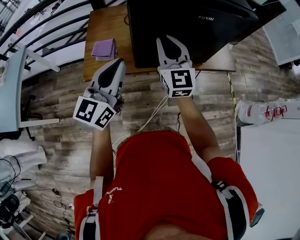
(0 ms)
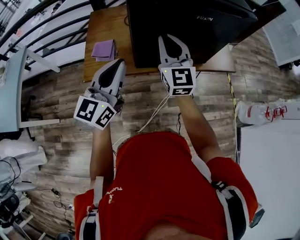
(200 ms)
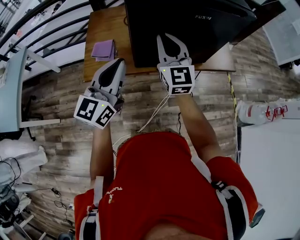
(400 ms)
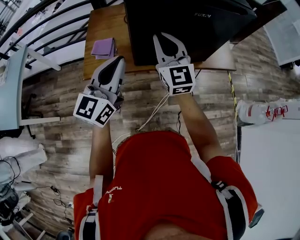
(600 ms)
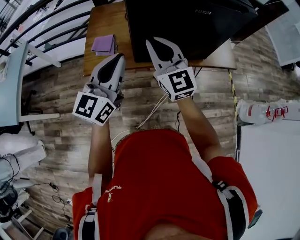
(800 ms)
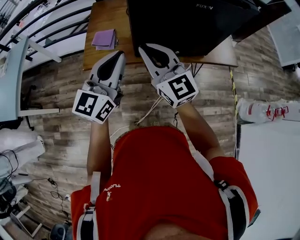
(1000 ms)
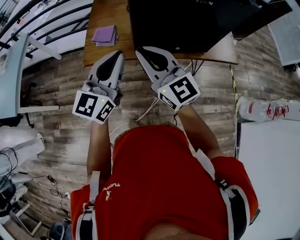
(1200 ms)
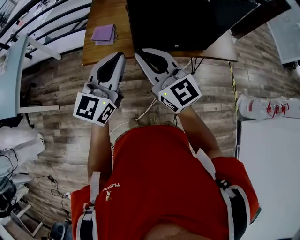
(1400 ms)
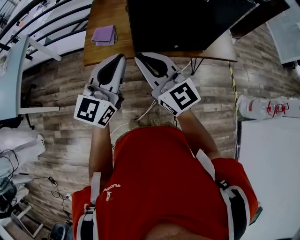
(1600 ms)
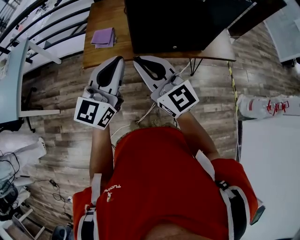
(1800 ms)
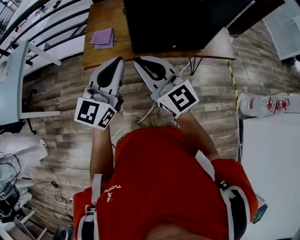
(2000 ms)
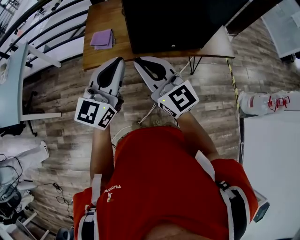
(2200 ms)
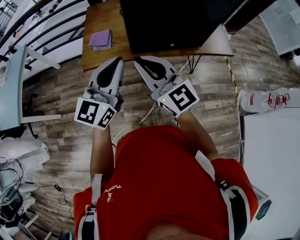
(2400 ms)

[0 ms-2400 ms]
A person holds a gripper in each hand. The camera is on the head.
0 ms to 1200 ms: The right gripper goes some 15 cm backward and to the left, and rotates roughly 30 degrees.
1200 ms to 2400 ms: The grippers make only small movements.

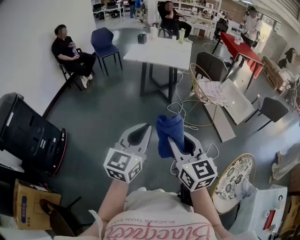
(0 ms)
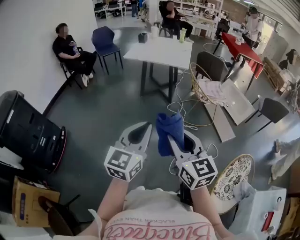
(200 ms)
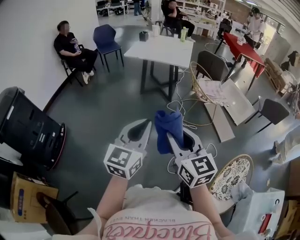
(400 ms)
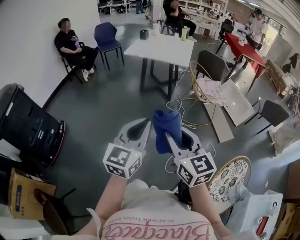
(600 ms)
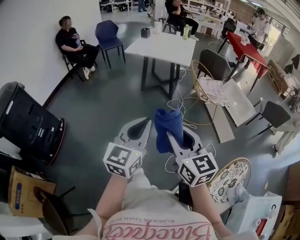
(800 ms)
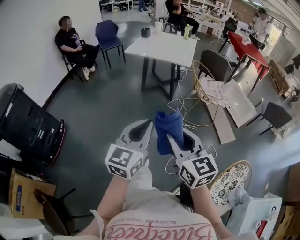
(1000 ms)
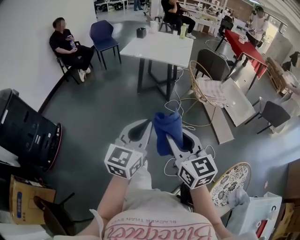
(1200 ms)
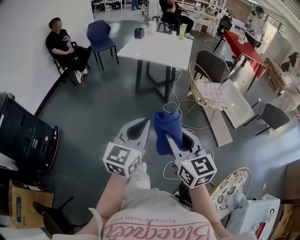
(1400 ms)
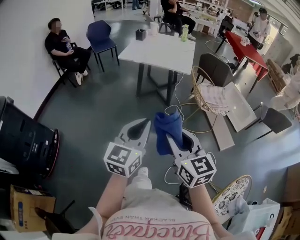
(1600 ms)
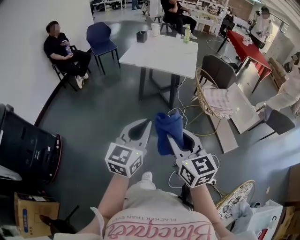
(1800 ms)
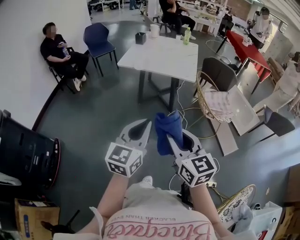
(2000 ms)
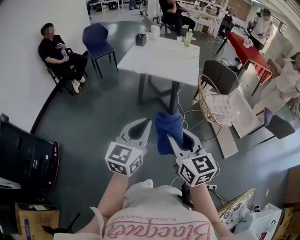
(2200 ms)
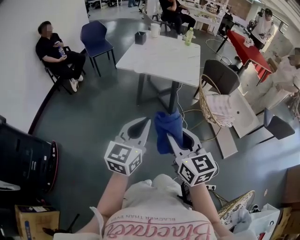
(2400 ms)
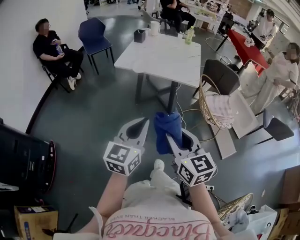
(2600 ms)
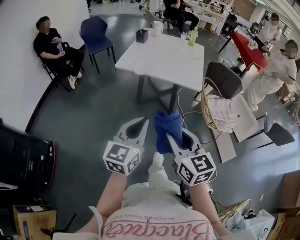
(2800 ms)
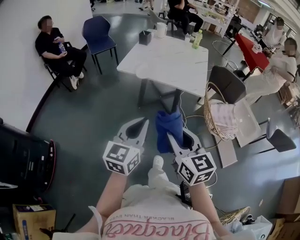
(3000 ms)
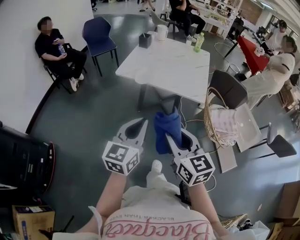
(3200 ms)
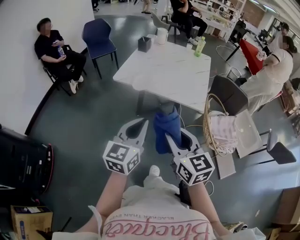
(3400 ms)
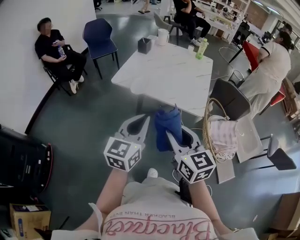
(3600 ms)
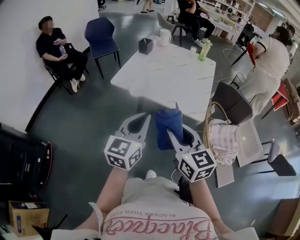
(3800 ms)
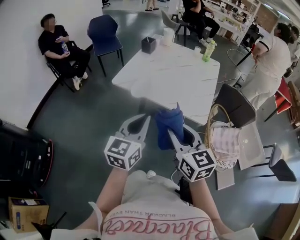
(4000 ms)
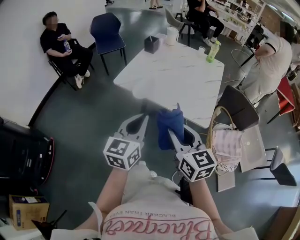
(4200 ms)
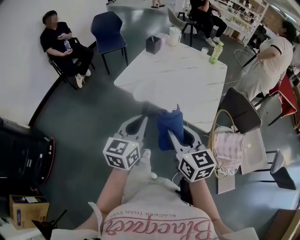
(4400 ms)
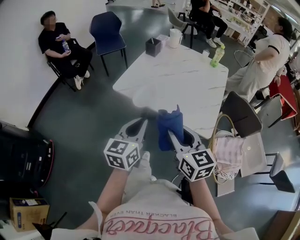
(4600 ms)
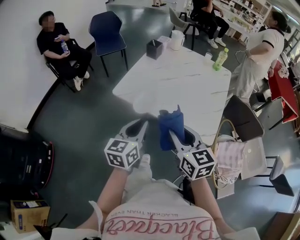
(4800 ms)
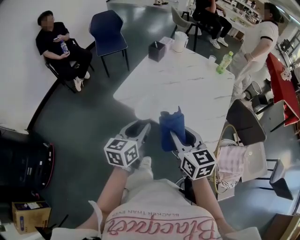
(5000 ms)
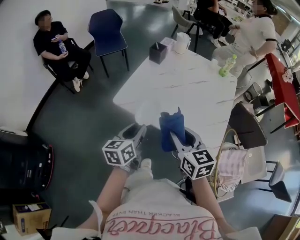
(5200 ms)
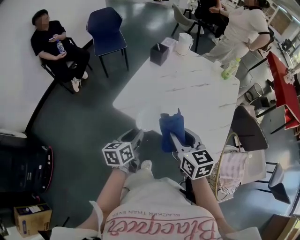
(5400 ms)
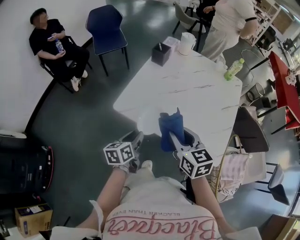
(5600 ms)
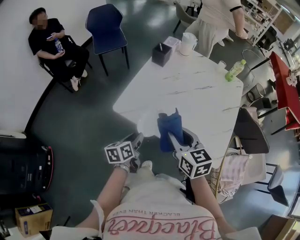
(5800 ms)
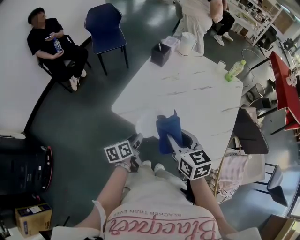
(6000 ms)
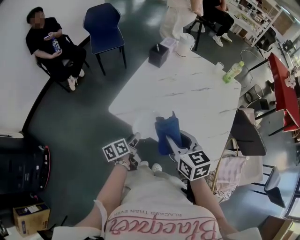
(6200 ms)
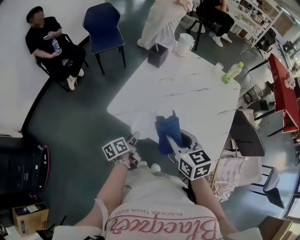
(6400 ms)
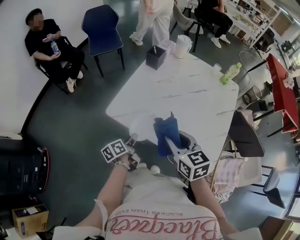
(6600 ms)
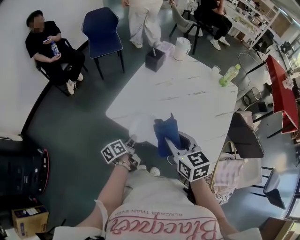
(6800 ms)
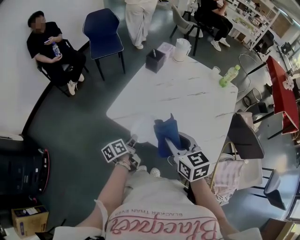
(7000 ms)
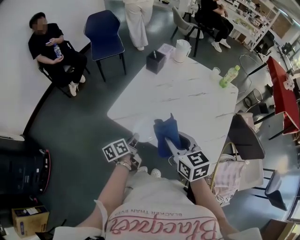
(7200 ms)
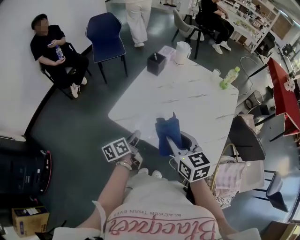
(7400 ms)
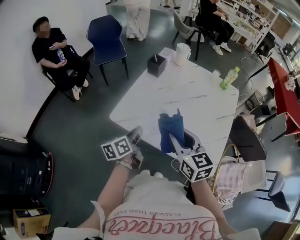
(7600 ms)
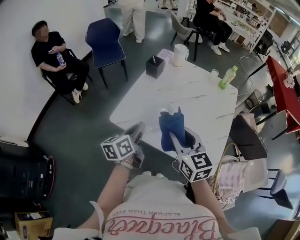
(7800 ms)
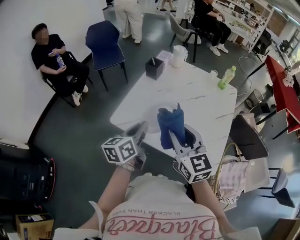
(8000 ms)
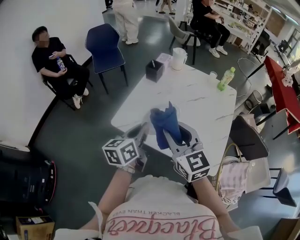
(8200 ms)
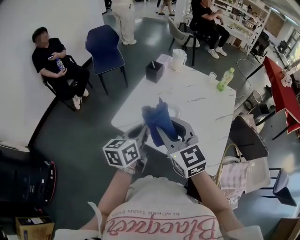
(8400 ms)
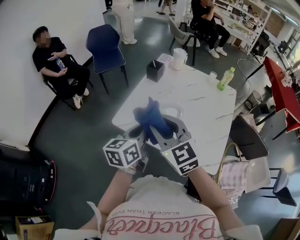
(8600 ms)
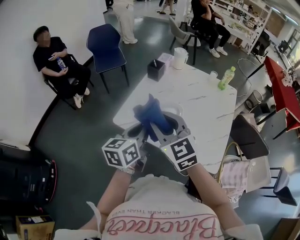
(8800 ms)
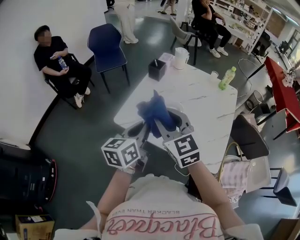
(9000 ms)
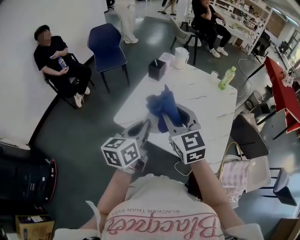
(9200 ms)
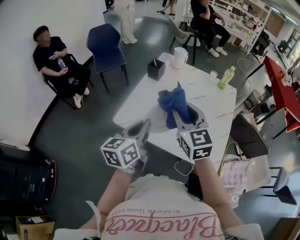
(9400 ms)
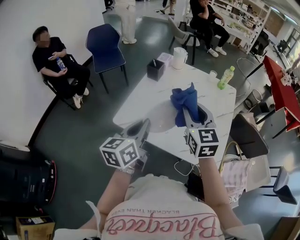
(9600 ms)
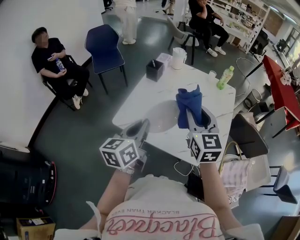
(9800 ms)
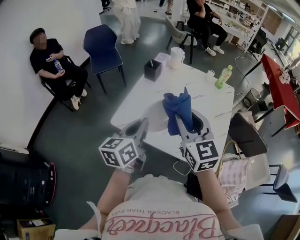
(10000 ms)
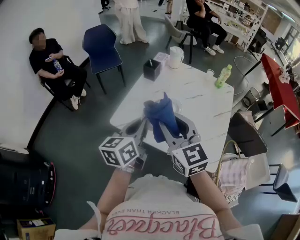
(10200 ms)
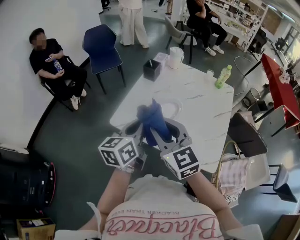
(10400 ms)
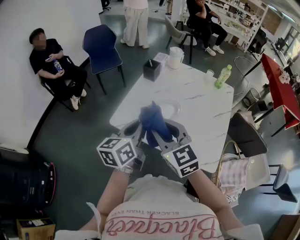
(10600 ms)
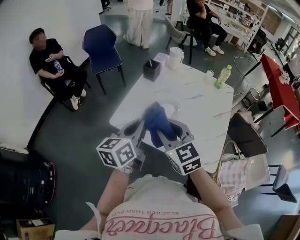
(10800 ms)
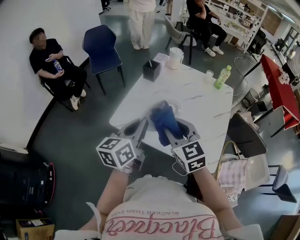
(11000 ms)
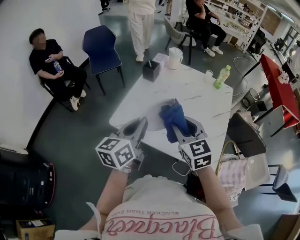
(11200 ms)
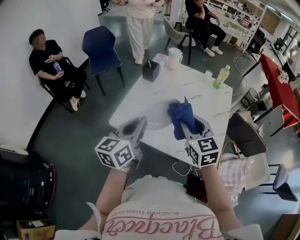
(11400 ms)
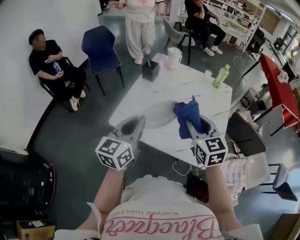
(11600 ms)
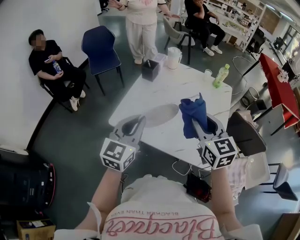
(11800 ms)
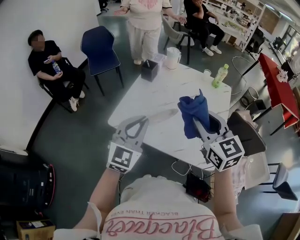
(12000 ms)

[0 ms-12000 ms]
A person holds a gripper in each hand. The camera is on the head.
0 ms to 1600 ms: Both grippers move forward, approximately 20 cm.
1600 ms to 3000 ms: Both grippers move forward, about 30 cm.
3000 ms to 4400 ms: The grippers both shift forward by roughly 25 cm.
4400 ms to 6000 ms: The left gripper goes roughly 35 cm downward and forward, rotates around the line of its fingers by roughly 40 degrees, counterclockwise from behind, and opens up. Meanwhile the right gripper shifts some 25 cm forward.
6000 ms to 7600 ms: The right gripper changes place by some 5 cm; the left gripper is displaced upward by about 10 cm, and closes up.
7600 ms to 9000 ms: The right gripper goes approximately 10 cm to the left and upward, and rotates some 20 degrees. The left gripper goes some 15 cm upward, and rotates some 20 degrees.
9000 ms to 10400 ms: The right gripper moves roughly 15 cm to the right and comes back.
10400 ms to 12000 ms: The left gripper rotates around the line of its fingers by about 50 degrees, clockwise from behind. Meanwhile the right gripper goes roughly 15 cm to the right.

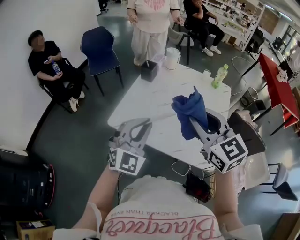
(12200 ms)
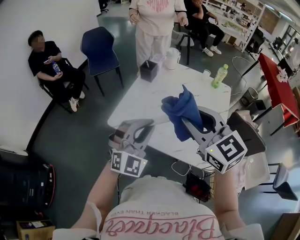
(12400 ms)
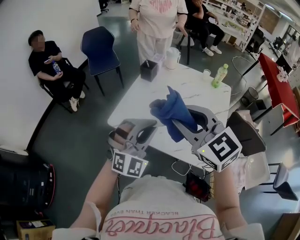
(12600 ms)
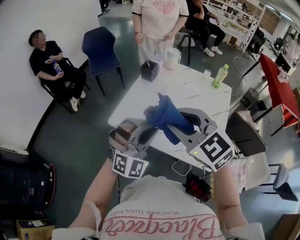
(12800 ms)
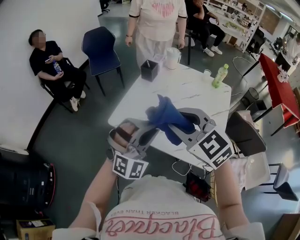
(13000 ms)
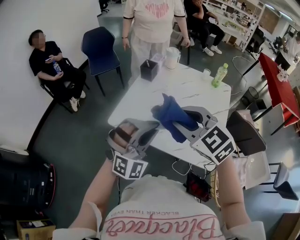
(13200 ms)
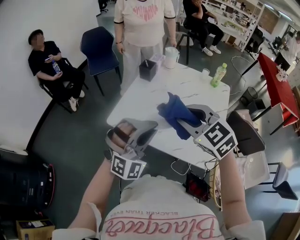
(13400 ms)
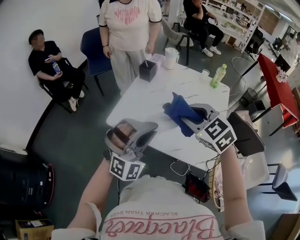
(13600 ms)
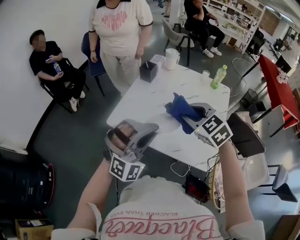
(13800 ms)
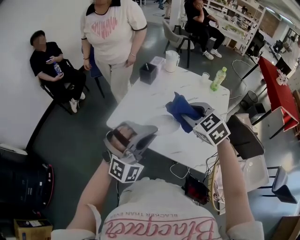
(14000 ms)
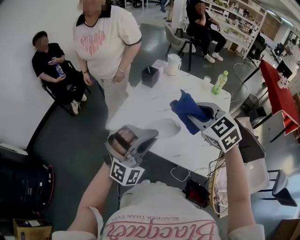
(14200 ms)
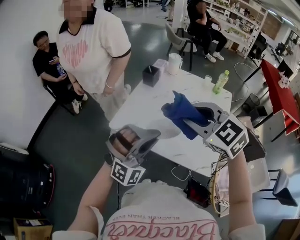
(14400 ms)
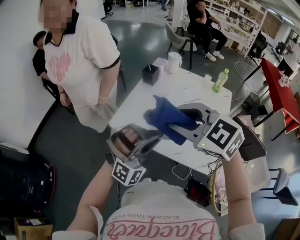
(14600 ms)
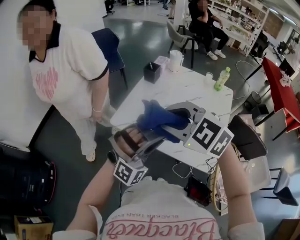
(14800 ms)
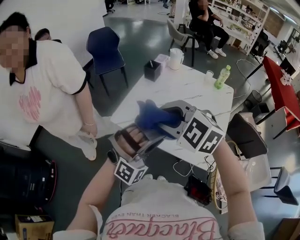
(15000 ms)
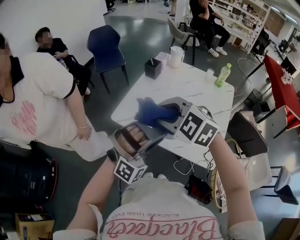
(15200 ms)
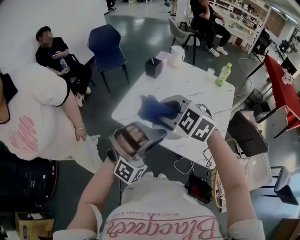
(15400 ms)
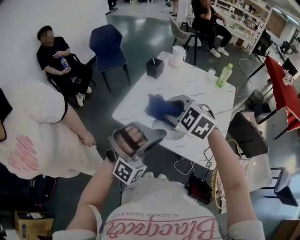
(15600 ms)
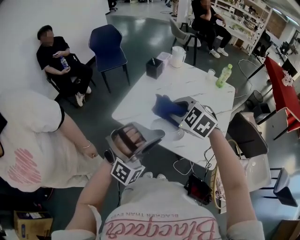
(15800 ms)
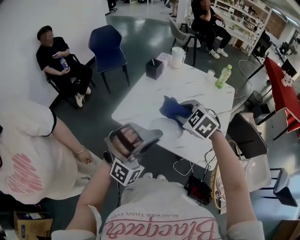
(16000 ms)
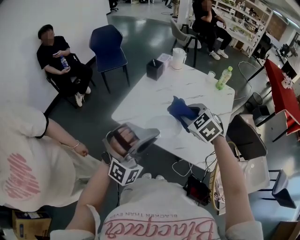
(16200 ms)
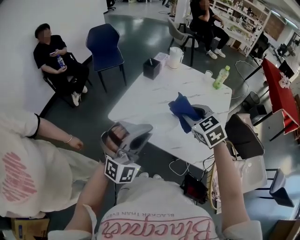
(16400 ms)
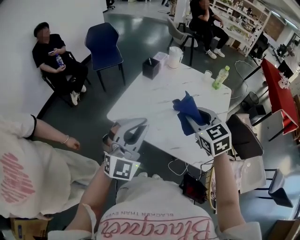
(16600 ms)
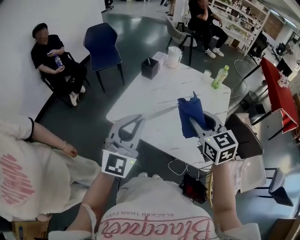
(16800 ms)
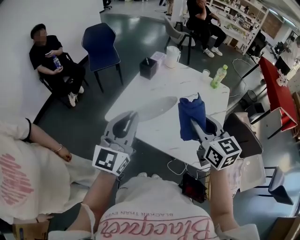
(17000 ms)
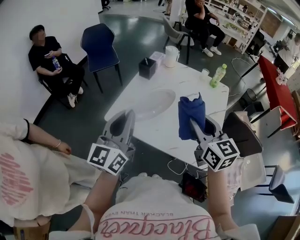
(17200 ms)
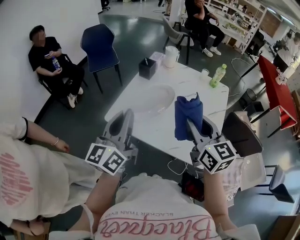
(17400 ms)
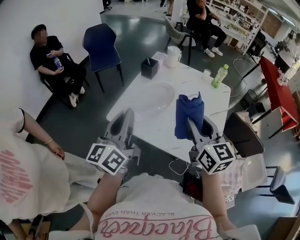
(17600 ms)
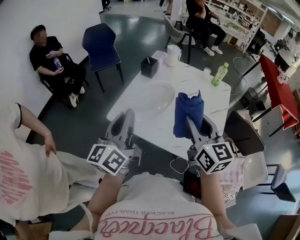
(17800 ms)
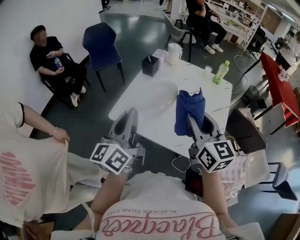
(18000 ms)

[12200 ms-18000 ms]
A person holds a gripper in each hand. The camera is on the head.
12200 ms to 13600 ms: The right gripper goes about 5 cm downward, travels to the left and back again, roughly 10 cm each way, and turns by some 30 degrees, while the left gripper changes place by roughly 5 cm, and rotates about 30 degrees.
13600 ms to 15000 ms: The right gripper shifts about 10 cm to the left, and turns by about 20 degrees.
15000 ms to 16600 ms: The right gripper shifts roughly 15 cm to the right and downward, and changes its angle by approximately 40 degrees. The left gripper shifts approximately 5 cm to the left, and rolls counterclockwise, seen from behind, by approximately 40 degrees.
16600 ms to 18000 ms: The right gripper travels upward by some 5 cm, and swivels roughly 30 degrees; the left gripper travels to the left by roughly 5 cm, and rotates around the line of its fingers by some 70 degrees, counterclockwise from behind.

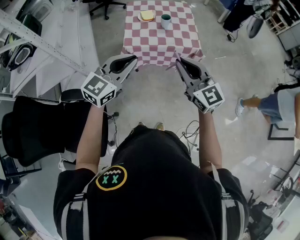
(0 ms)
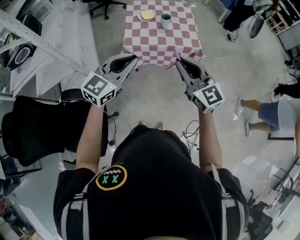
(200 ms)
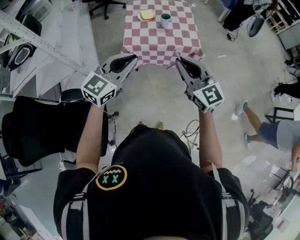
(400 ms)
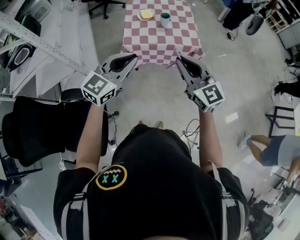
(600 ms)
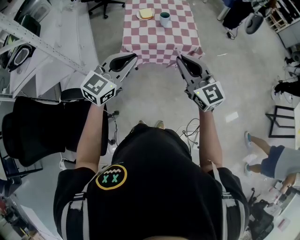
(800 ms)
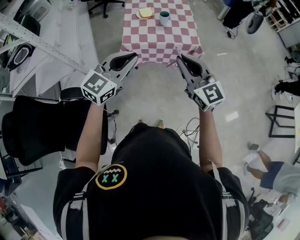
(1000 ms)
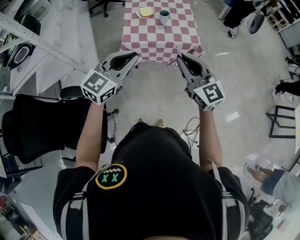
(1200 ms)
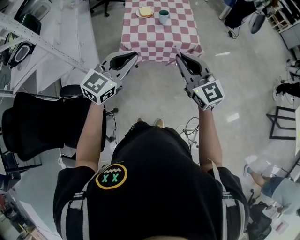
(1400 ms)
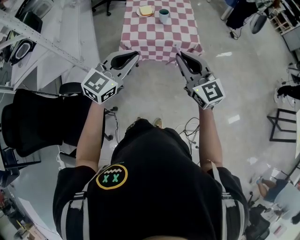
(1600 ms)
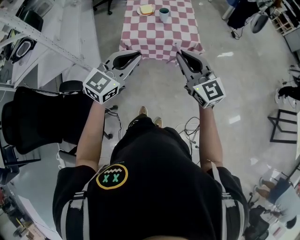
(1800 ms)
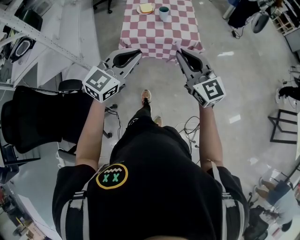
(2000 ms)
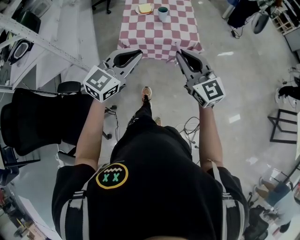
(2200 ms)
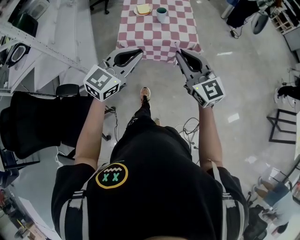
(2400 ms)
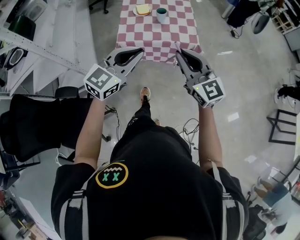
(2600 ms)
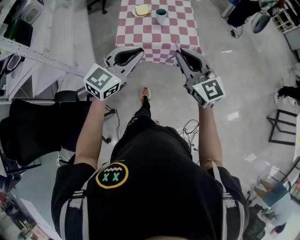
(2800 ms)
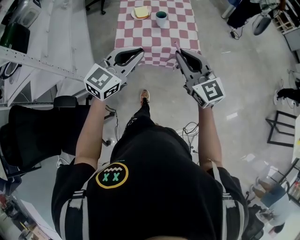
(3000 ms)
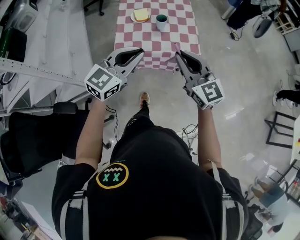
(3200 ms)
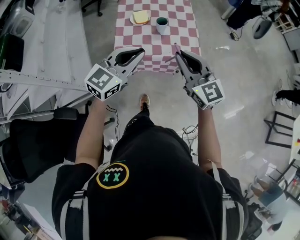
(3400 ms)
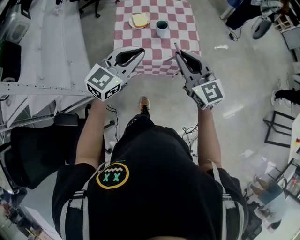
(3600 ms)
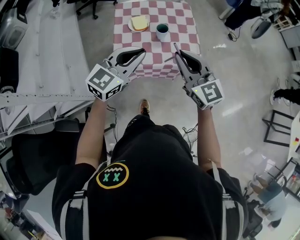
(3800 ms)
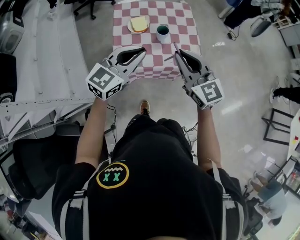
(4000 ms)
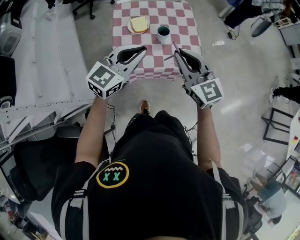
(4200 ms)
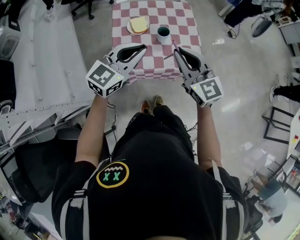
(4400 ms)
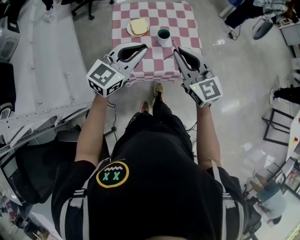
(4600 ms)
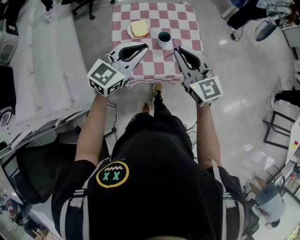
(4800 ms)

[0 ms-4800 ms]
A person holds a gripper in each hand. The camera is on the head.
0 ms to 1600 ms: The left gripper shifts approximately 5 cm to the right.
1600 ms to 3200 ms: The grippers both shift forward by about 15 cm.
3200 ms to 4800 ms: The grippers both shift forward by roughly 25 cm.
